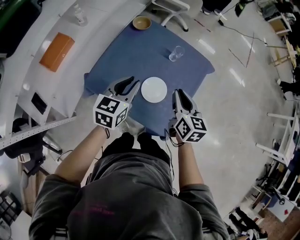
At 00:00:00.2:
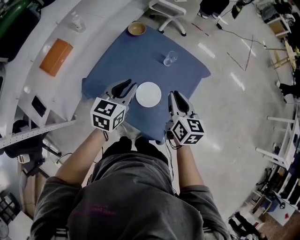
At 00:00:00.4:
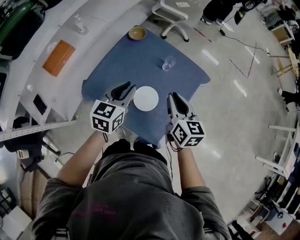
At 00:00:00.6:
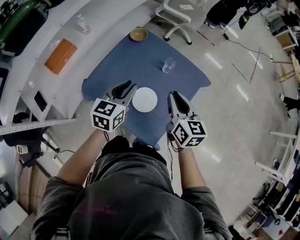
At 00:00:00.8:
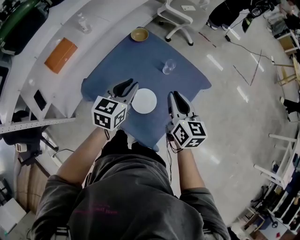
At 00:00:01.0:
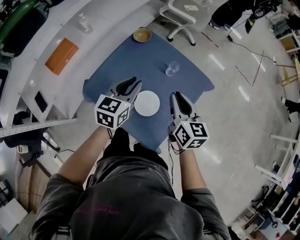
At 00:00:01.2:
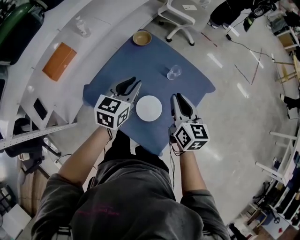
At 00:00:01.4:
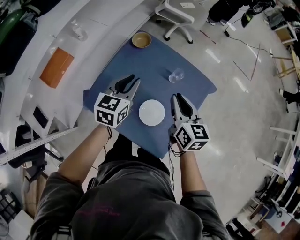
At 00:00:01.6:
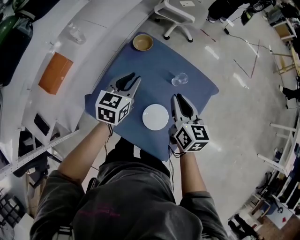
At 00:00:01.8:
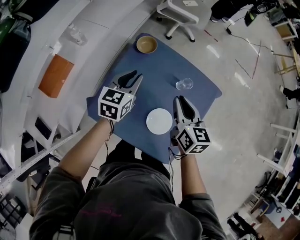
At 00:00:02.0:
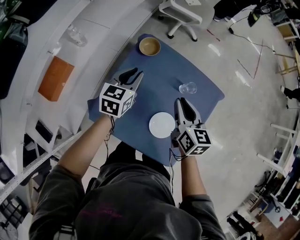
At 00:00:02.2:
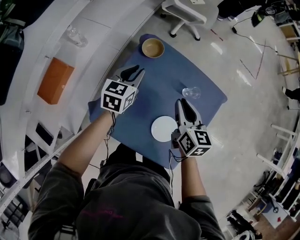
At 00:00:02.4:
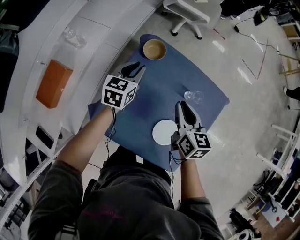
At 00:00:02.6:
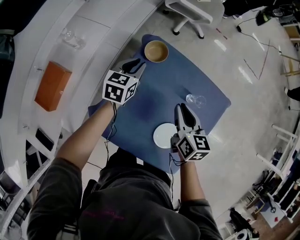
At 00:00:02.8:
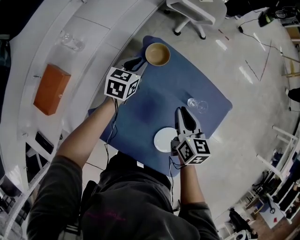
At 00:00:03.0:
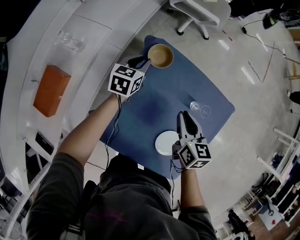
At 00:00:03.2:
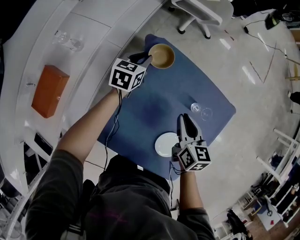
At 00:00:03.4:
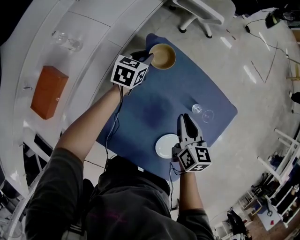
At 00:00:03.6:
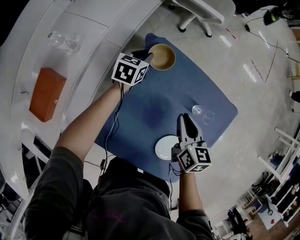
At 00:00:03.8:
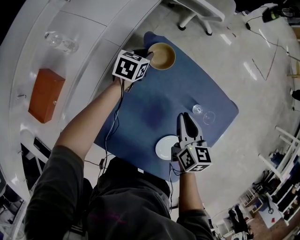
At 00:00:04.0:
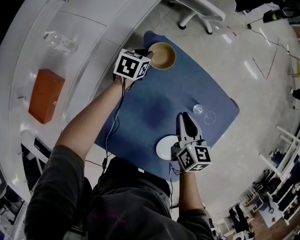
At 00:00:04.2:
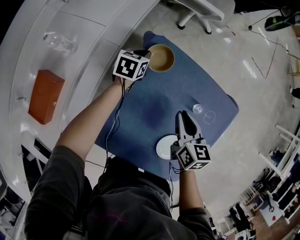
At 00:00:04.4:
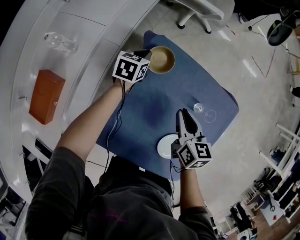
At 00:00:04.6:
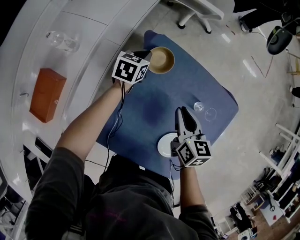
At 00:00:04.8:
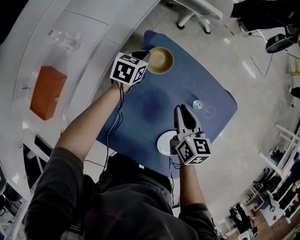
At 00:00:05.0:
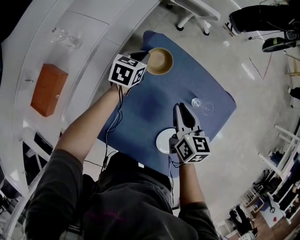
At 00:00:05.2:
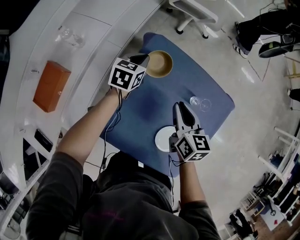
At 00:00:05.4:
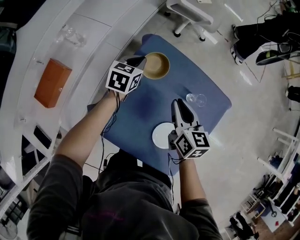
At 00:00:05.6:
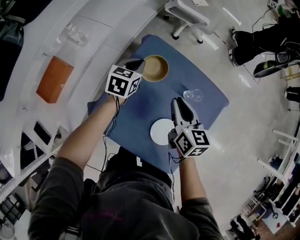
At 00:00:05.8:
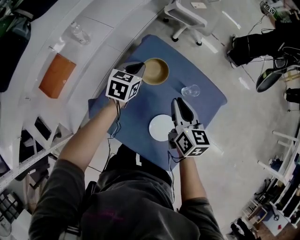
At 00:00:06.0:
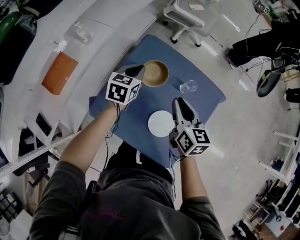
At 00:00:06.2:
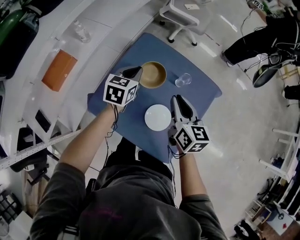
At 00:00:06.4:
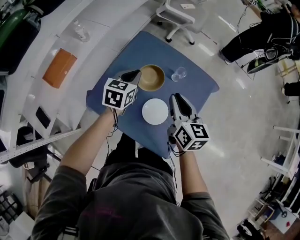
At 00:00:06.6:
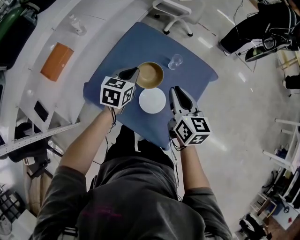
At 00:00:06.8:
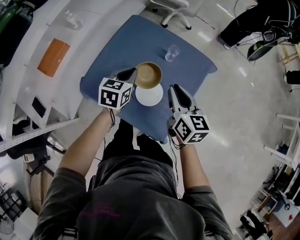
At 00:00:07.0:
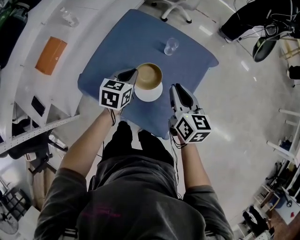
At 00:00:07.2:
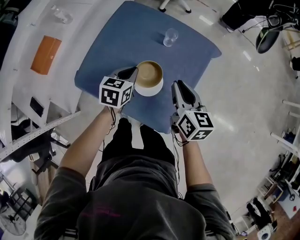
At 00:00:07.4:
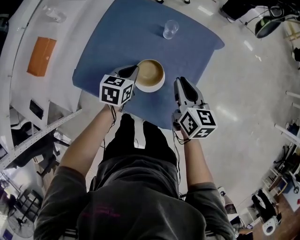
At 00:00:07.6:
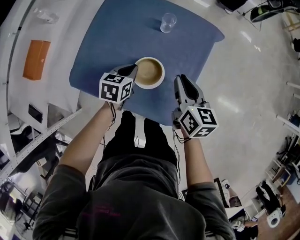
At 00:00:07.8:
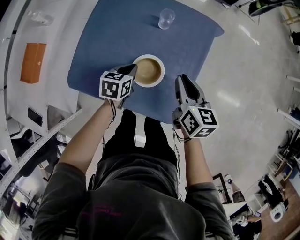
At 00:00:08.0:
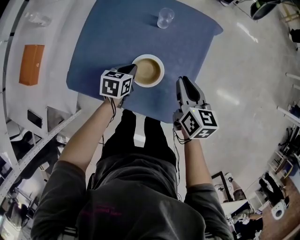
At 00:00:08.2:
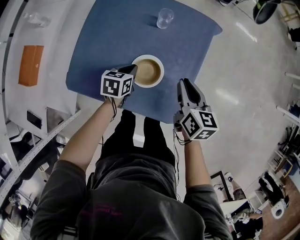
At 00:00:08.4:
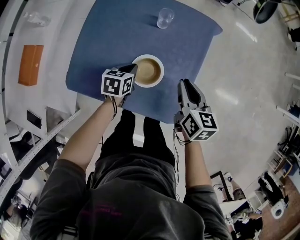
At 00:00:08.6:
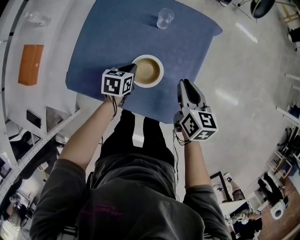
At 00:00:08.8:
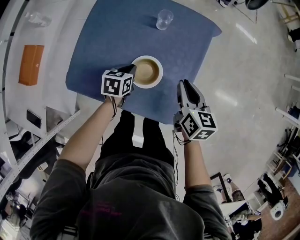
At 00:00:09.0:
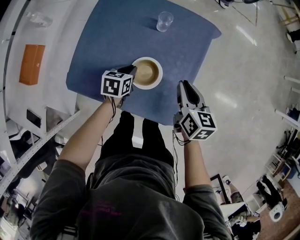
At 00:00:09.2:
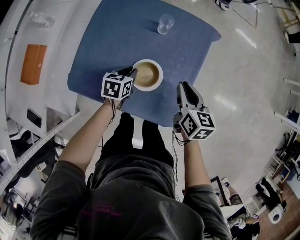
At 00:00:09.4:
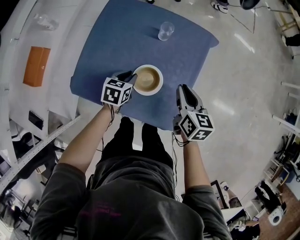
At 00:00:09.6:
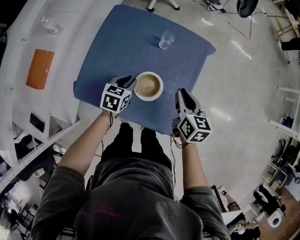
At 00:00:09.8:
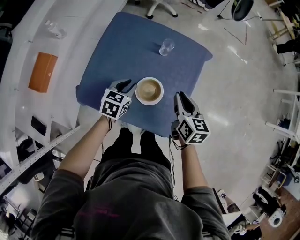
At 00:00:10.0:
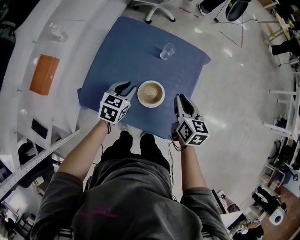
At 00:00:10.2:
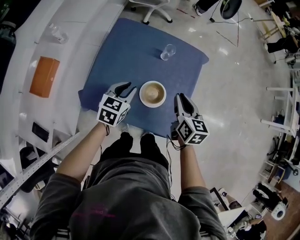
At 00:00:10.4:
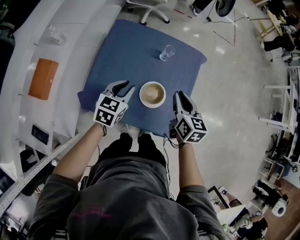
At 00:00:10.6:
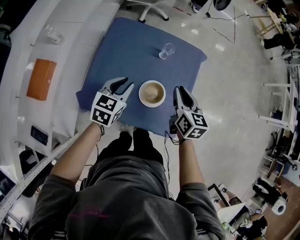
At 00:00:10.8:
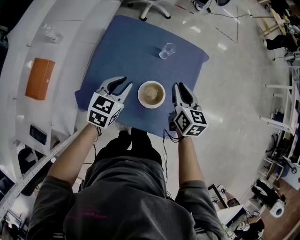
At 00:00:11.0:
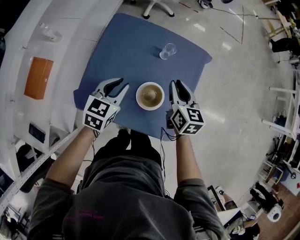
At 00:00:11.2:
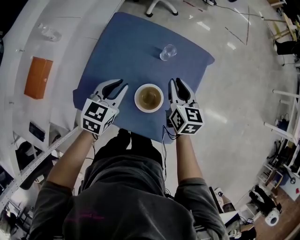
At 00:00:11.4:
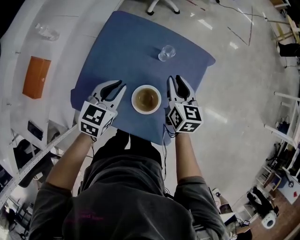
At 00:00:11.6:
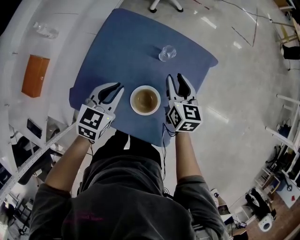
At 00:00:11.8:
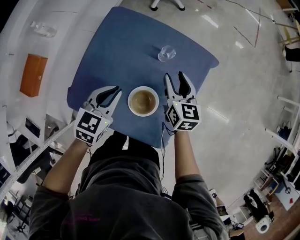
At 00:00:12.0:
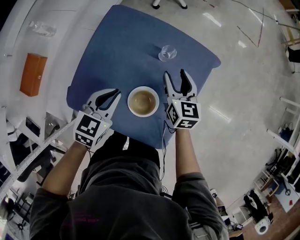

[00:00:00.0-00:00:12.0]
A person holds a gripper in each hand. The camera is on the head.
00:00:00.0 to 00:00:01.6: Both grippers move forward, roughly 15 cm.
00:00:01.6 to 00:00:03.0: The left gripper goes about 25 cm forward and downward, while the right gripper shifts roughly 15 cm downward, forward and to the left.
00:00:03.0 to 00:00:04.4: The left gripper is displaced downward by about 5 cm.
00:00:04.4 to 00:00:06.0: The left gripper heads backward and upward, covering some 25 cm, while the right gripper shifts approximately 15 cm upward, backward and to the right.
00:00:06.0 to 00:00:07.6: The grippers both shift backward, to the right and downward by roughly 25 cm.
00:00:07.6 to 00:00:09.0: The grippers make only small movements.
00:00:09.0 to 00:00:10.4: The left gripper shifts some 20 cm upward and to the left, and changes its angle by about 30 degrees; the right gripper heads upward and to the left, covering some 10 cm.
00:00:10.4 to 00:00:12.0: The left gripper ends up about 5 cm from where it was; the right gripper is displaced forward and downward by approximately 20 cm, and opens its fingers.

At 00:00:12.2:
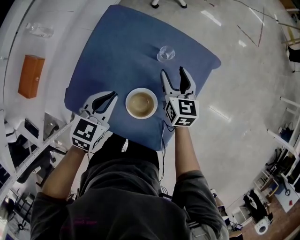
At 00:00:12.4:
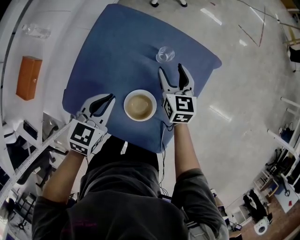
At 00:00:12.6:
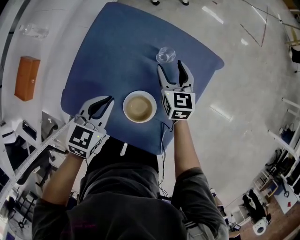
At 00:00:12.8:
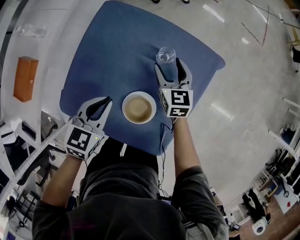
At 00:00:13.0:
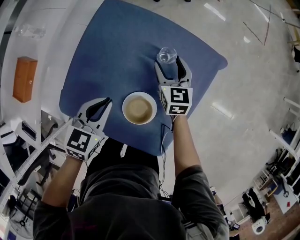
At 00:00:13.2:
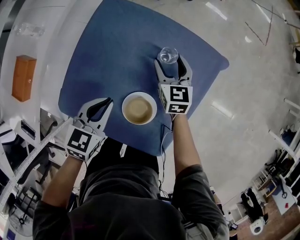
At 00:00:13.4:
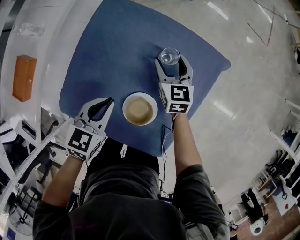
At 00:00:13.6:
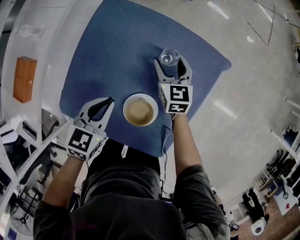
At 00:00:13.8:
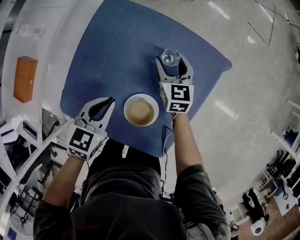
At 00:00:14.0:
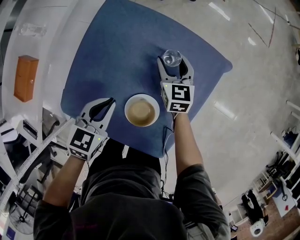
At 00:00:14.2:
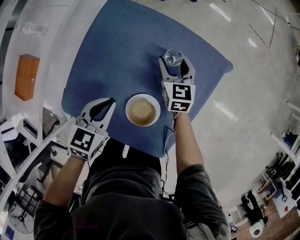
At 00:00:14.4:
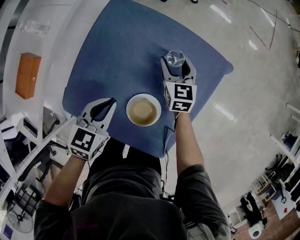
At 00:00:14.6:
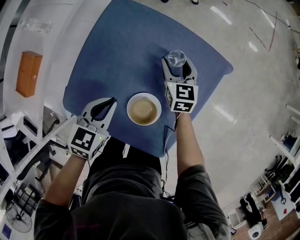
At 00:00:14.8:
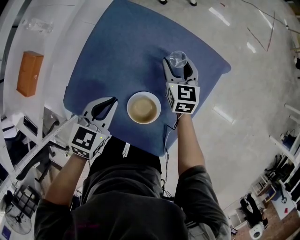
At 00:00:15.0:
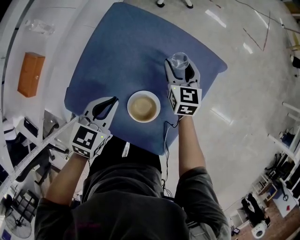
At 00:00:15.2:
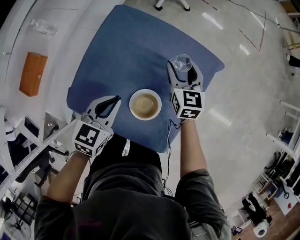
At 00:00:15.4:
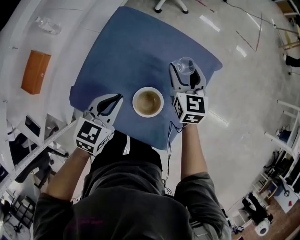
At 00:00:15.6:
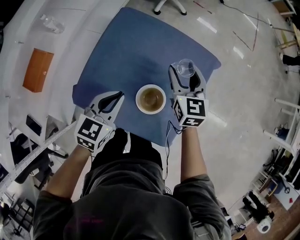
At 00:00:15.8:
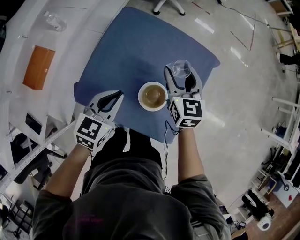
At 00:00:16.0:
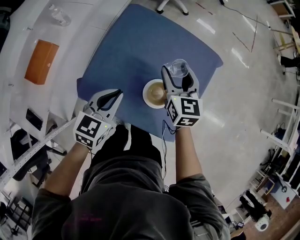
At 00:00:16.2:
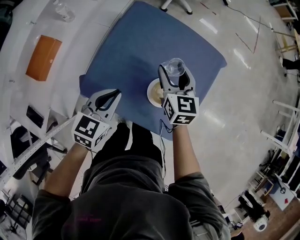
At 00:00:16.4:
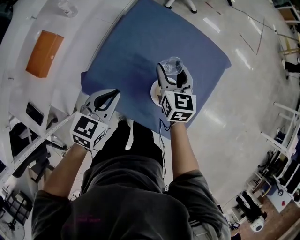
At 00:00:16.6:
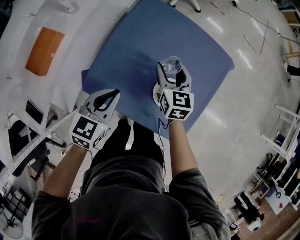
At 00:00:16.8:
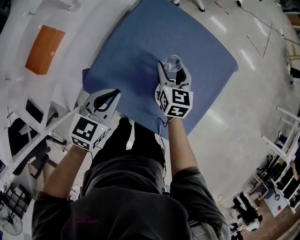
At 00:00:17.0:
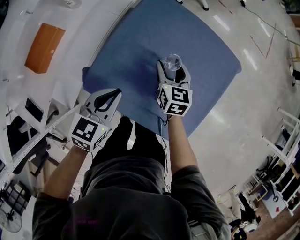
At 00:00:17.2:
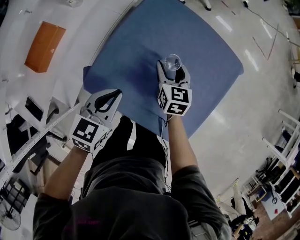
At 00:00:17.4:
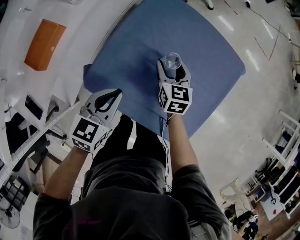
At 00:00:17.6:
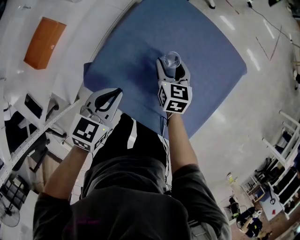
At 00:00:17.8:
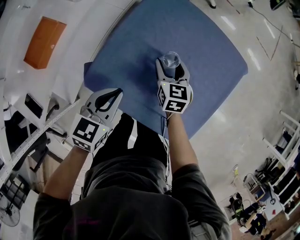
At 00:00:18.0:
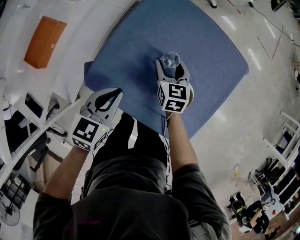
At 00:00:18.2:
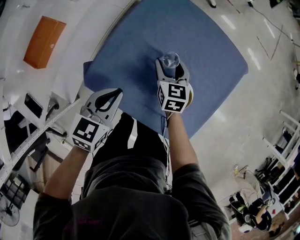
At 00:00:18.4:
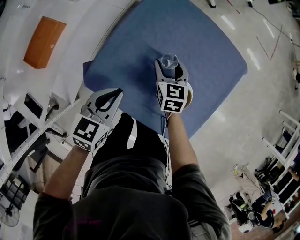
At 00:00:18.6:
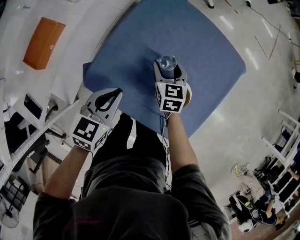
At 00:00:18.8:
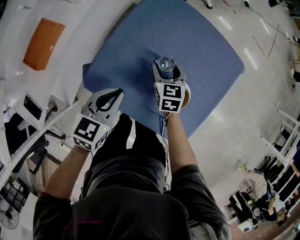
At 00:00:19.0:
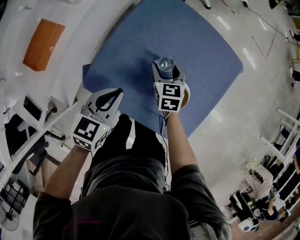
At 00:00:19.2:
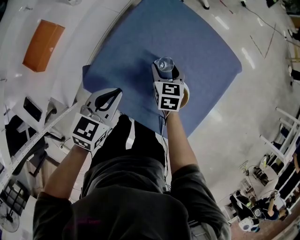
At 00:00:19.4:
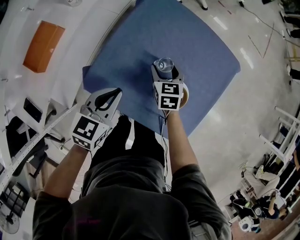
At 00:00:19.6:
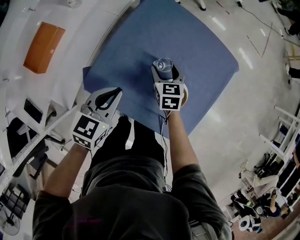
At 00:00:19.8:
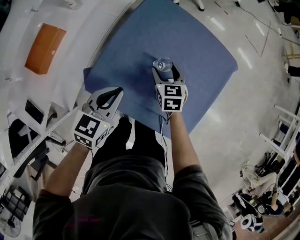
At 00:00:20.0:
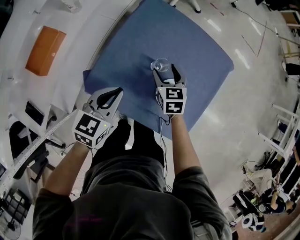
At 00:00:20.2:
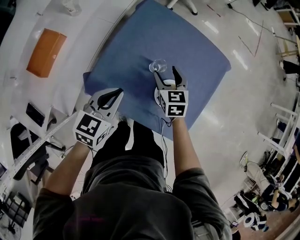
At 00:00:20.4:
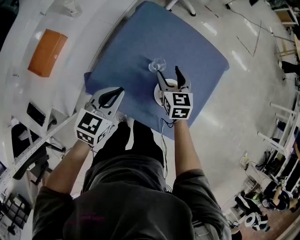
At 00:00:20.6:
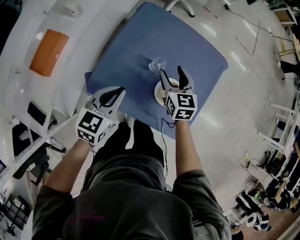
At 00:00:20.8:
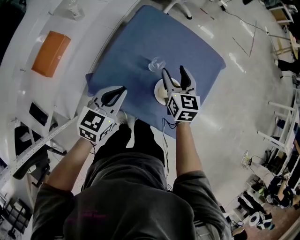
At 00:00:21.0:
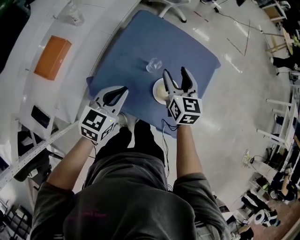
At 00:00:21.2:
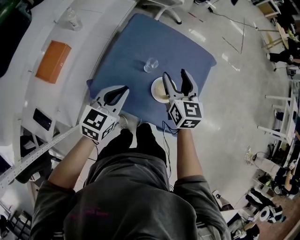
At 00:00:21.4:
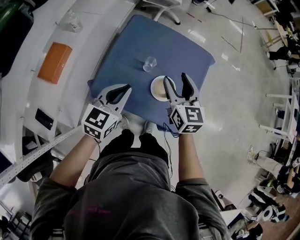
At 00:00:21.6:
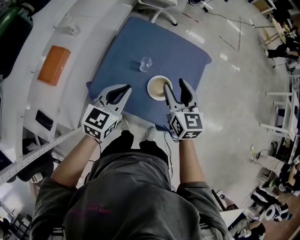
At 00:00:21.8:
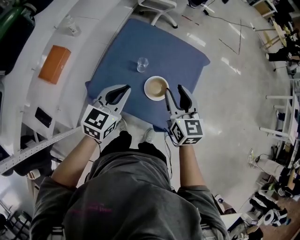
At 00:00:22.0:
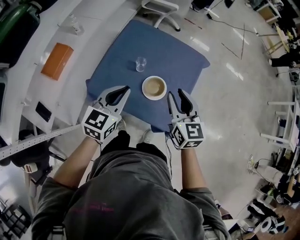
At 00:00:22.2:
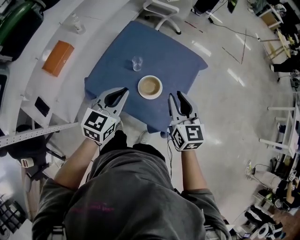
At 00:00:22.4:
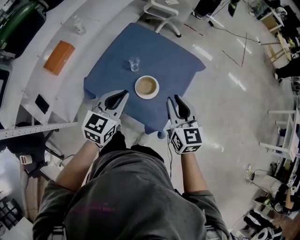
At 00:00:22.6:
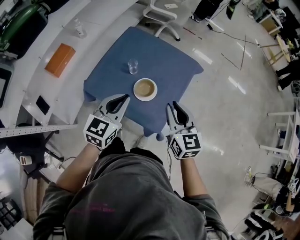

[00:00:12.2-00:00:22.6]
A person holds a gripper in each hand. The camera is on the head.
00:00:12.2 to 00:00:13.6: The right gripper shifts some 10 cm downward and forward.
00:00:13.6 to 00:00:15.2: The right gripper shifts roughly 10 cm upward; the left gripper changes place by roughly 5 cm.
00:00:15.2 to 00:00:16.6: Both grippers move to the left and backward, about 15 cm.
00:00:16.6 to 00:00:18.2: The right gripper is displaced downward by roughly 10 cm.
00:00:18.2 to 00:00:19.6: The grippers stay close to where they were, moving slightly.
00:00:19.6 to 00:00:21.2: The right gripper moves upward, about 25 cm, and rotates some 20 degrees. Meanwhile the left gripper shifts approximately 10 cm upward.
00:00:21.2 to 00:00:22.6: The left gripper travels to the right, backward and upward by approximately 20 cm, while the right gripper moves to the right and backward, approximately 20 cm, and closes its fingers.

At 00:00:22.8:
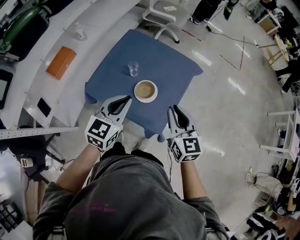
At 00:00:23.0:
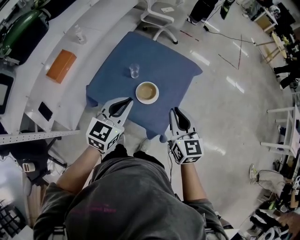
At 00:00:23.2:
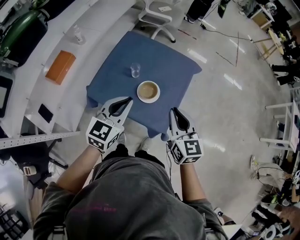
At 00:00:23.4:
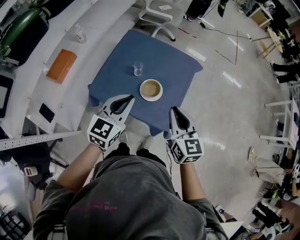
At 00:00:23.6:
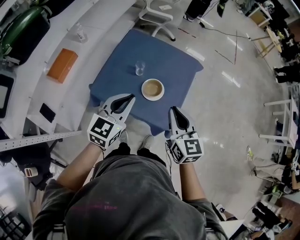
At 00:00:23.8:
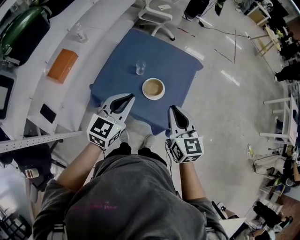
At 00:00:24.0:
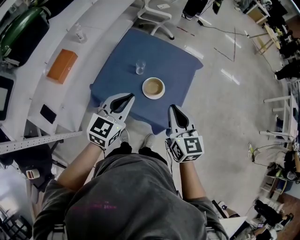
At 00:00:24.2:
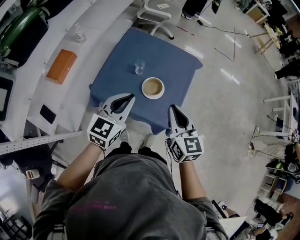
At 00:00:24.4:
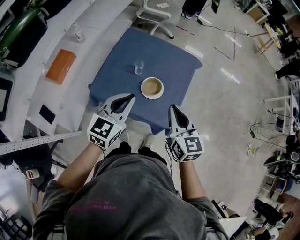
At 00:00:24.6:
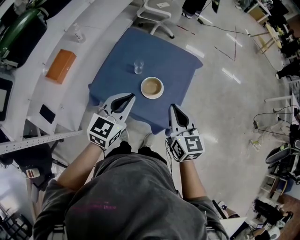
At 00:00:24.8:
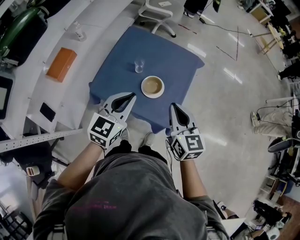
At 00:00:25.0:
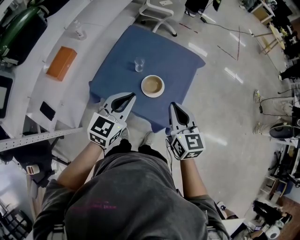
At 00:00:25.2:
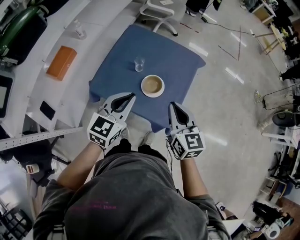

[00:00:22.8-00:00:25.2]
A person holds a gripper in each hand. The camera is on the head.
00:00:22.8 to 00:00:24.0: Both grippers travel together to the left, about 5 cm.
00:00:24.0 to 00:00:25.2: The grippers make only small movements.
